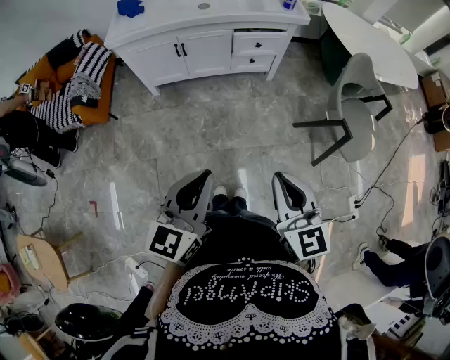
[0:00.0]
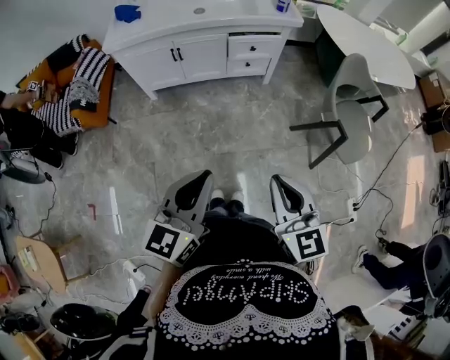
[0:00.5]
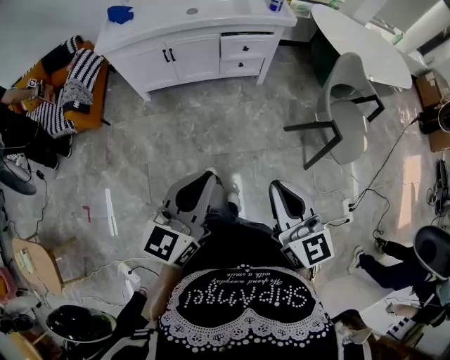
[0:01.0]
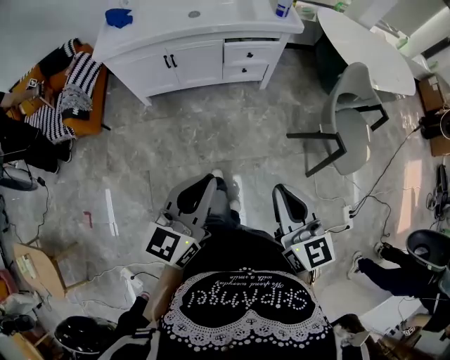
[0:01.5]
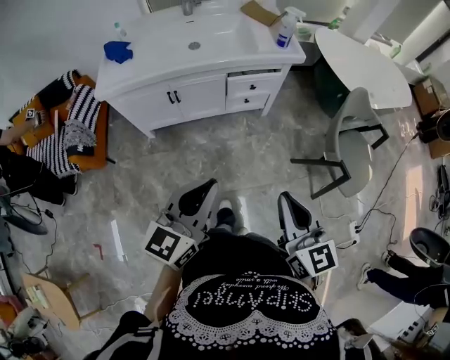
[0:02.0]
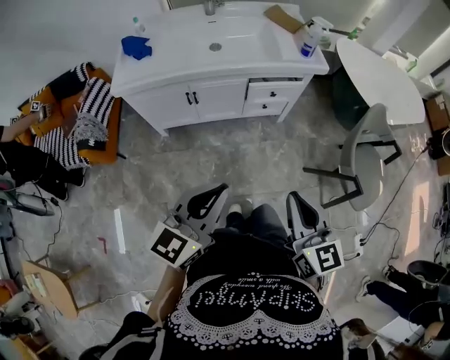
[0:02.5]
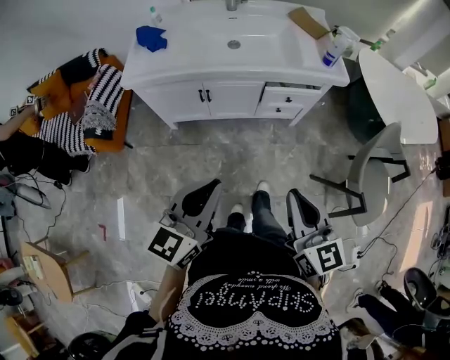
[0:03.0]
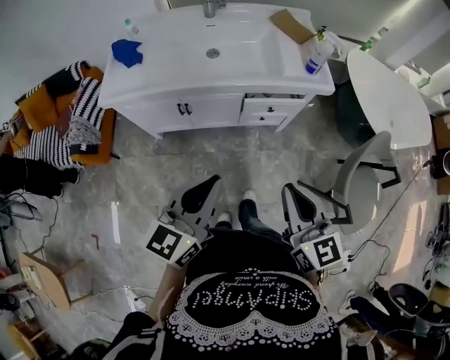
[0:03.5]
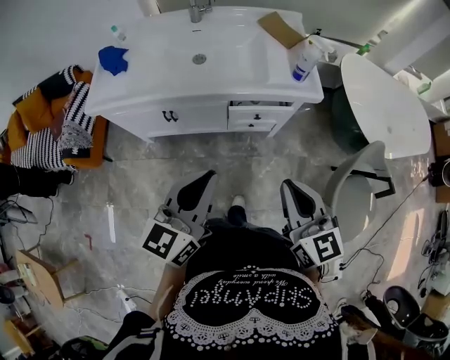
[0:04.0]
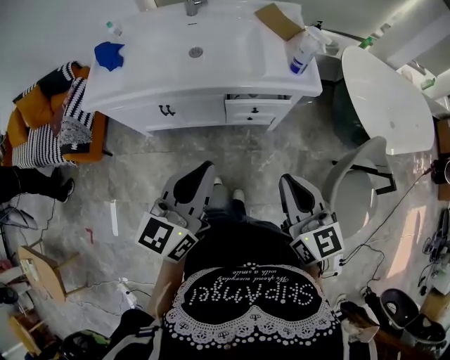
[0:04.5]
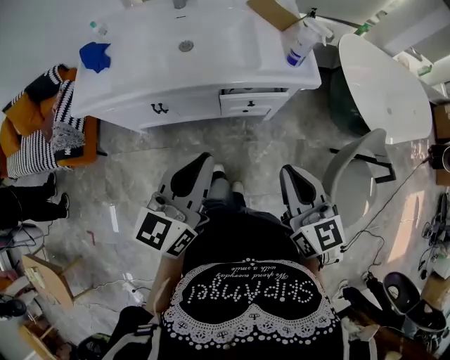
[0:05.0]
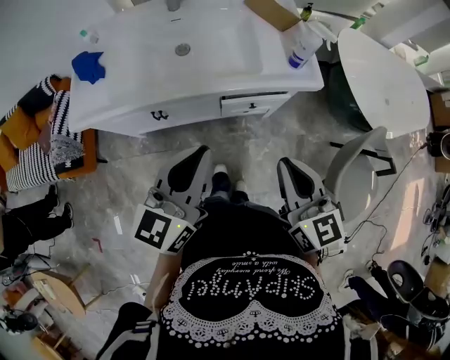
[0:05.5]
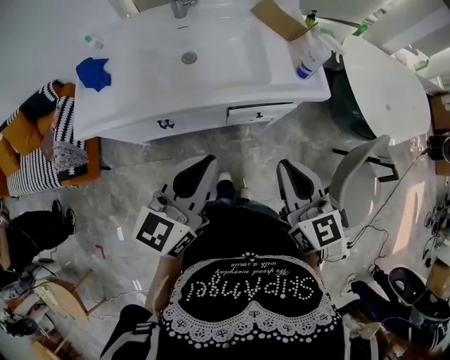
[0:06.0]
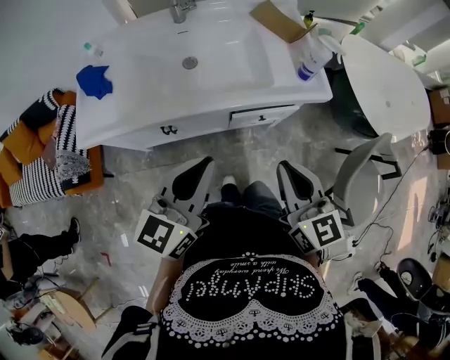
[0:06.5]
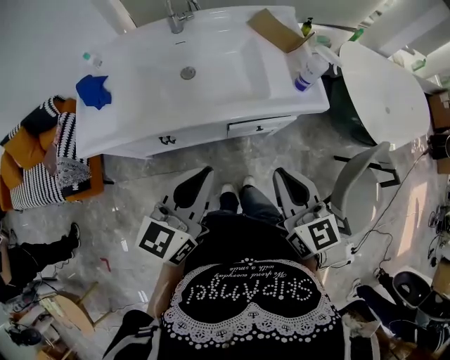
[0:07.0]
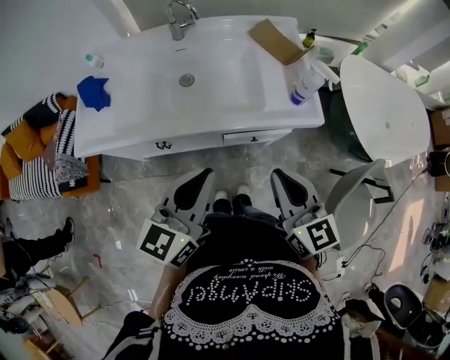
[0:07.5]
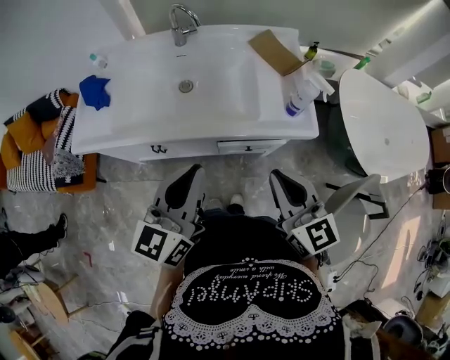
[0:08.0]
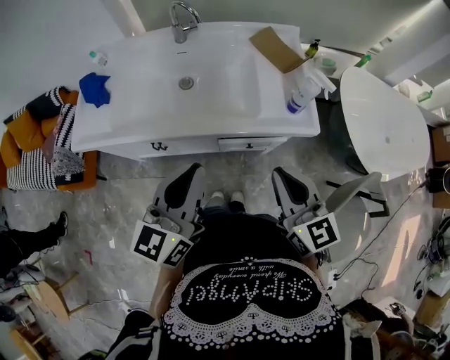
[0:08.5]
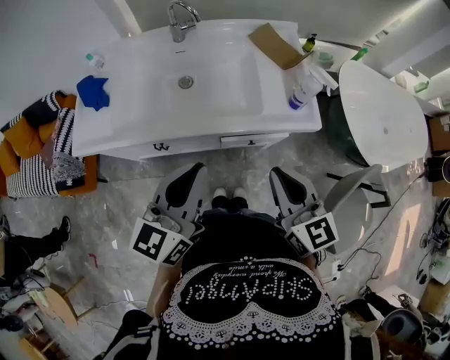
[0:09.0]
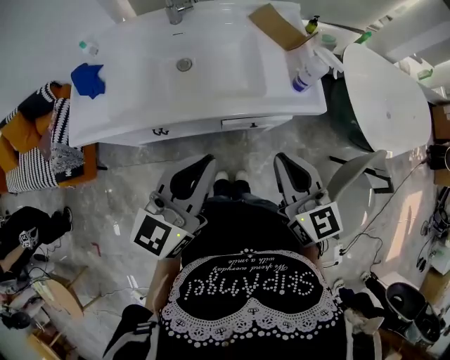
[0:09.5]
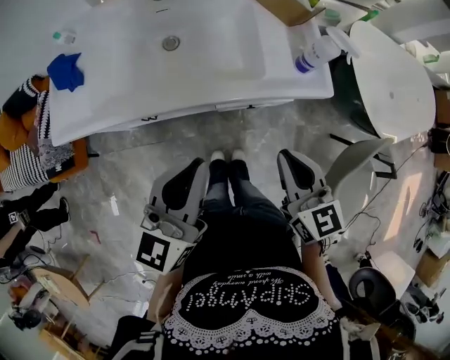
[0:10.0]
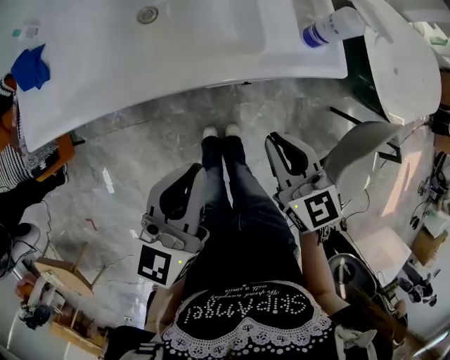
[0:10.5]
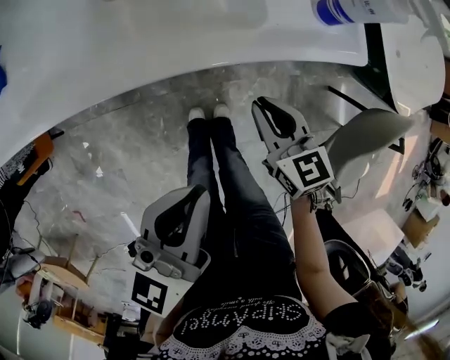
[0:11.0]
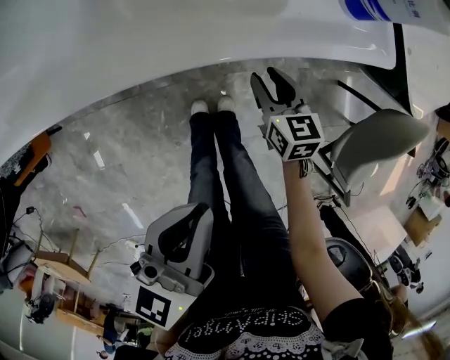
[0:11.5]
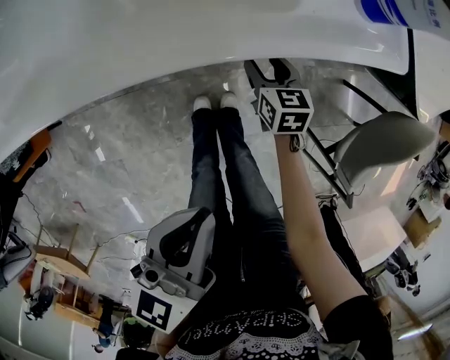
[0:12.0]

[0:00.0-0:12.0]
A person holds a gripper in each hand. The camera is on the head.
0:00.0 to 0:02.0: Both grippers travel together forward, about 15 cm.
0:02.0 to 0:04.0: The two grippers go approximately 25 cm forward.
0:04.0 to 0:06.0: The right gripper travels forward and to the left by some 10 cm. The left gripper heads forward, covering some 10 cm.
0:06.0 to 0:08.0: Both grippers travel together forward, some 5 cm.
0:08.0 to 0:10.0: The right gripper shifts approximately 5 cm downward.
0:10.0 to 0:12.0: The left gripper heads downward, covering roughly 20 cm, and turns by approximately 20 degrees; the right gripper heads downward, covering roughly 40 cm, changes its angle by some 30 degrees, and opens its fingers.

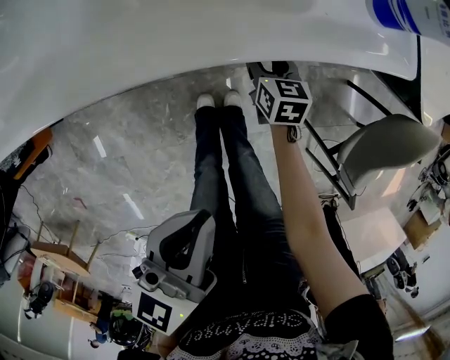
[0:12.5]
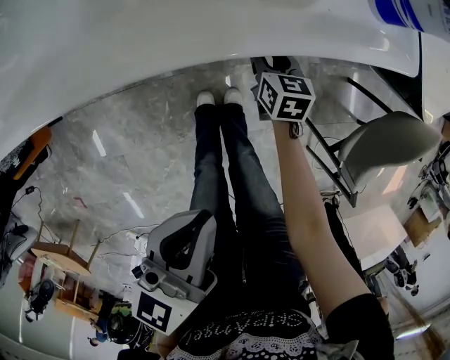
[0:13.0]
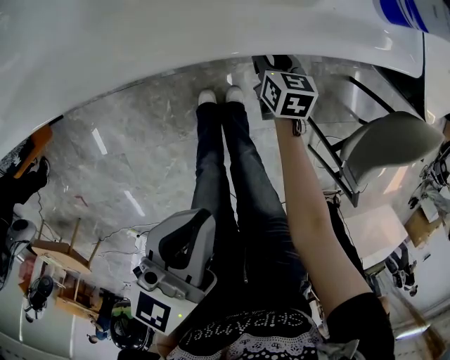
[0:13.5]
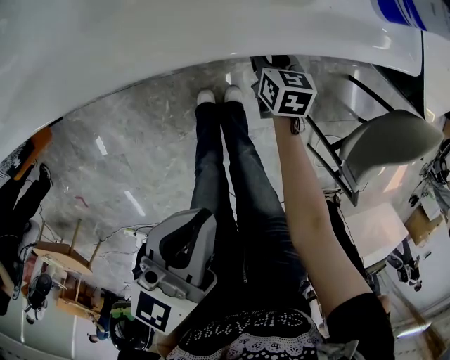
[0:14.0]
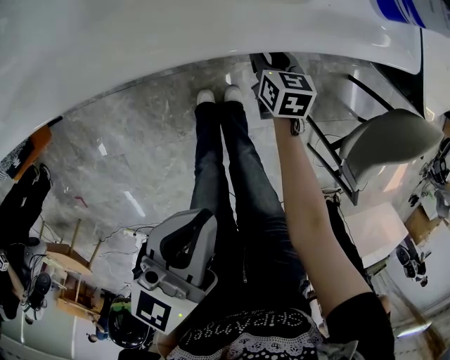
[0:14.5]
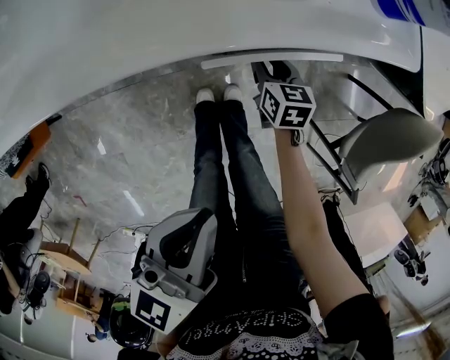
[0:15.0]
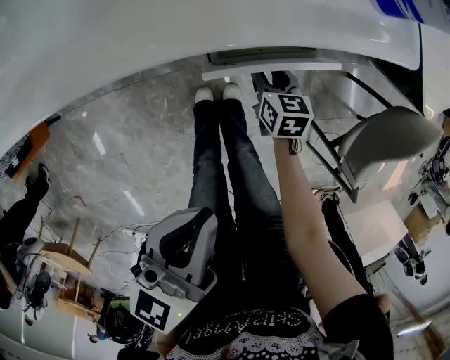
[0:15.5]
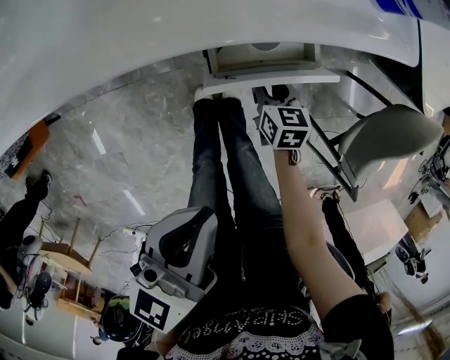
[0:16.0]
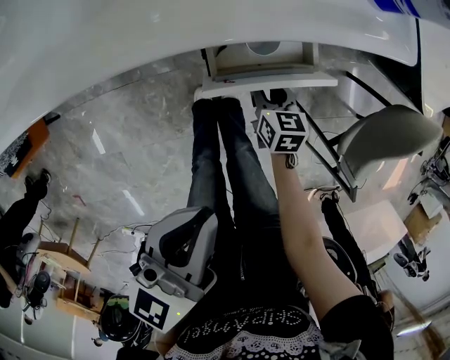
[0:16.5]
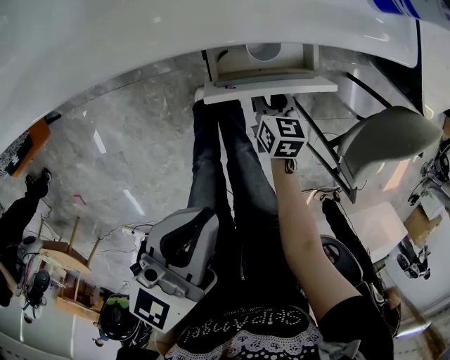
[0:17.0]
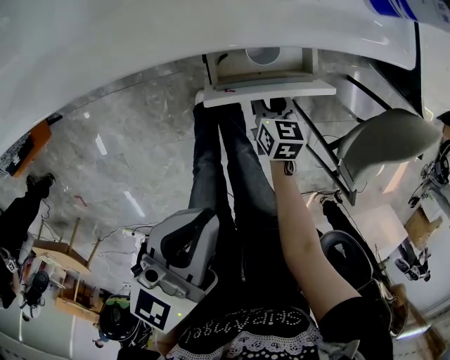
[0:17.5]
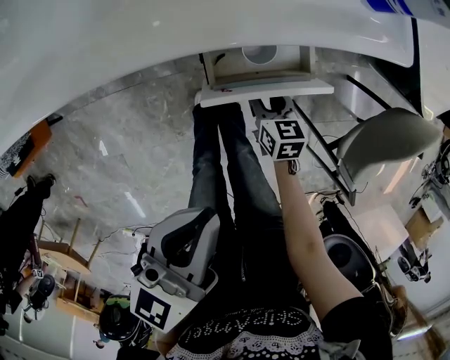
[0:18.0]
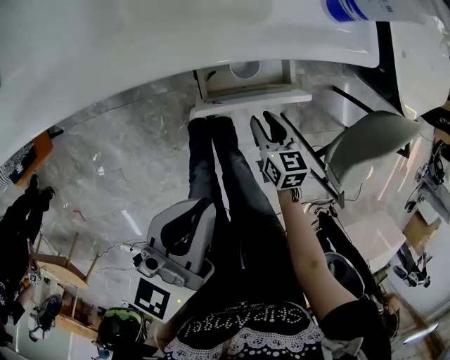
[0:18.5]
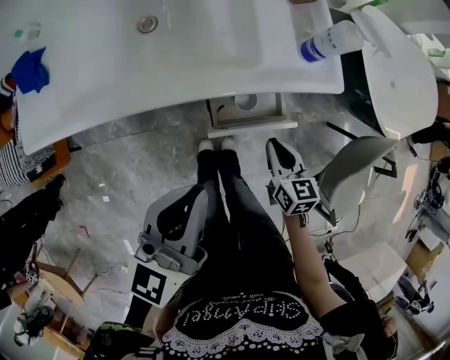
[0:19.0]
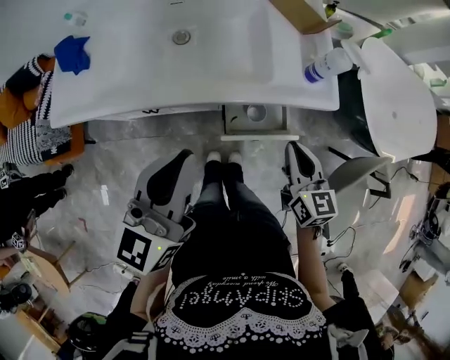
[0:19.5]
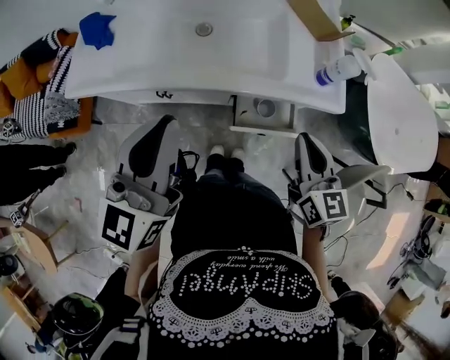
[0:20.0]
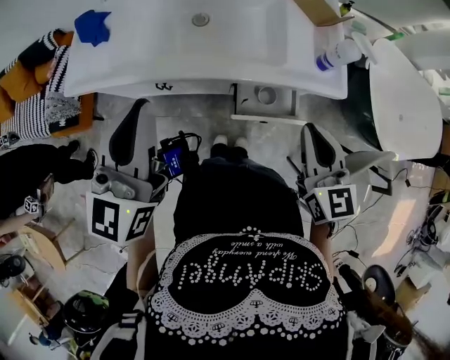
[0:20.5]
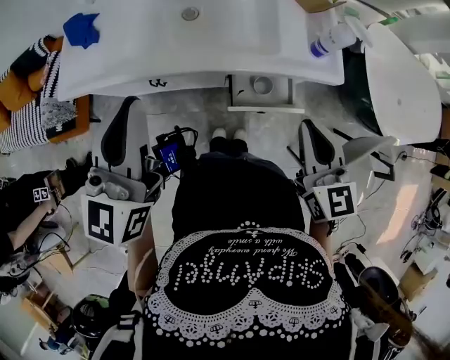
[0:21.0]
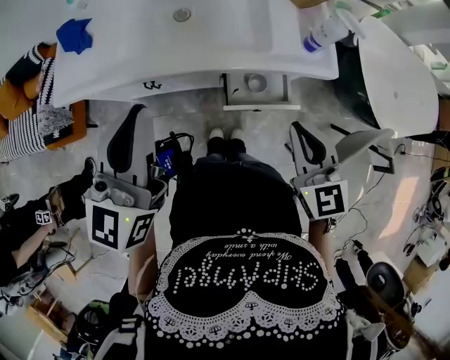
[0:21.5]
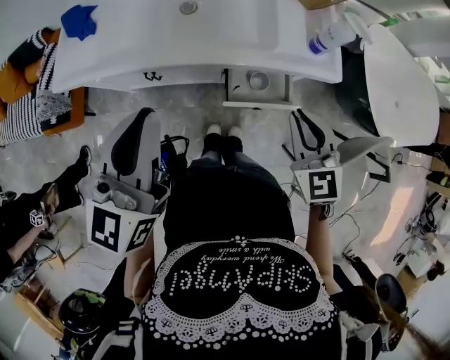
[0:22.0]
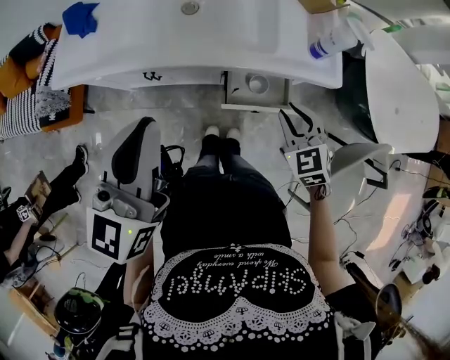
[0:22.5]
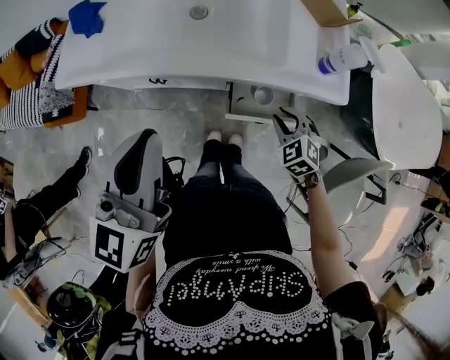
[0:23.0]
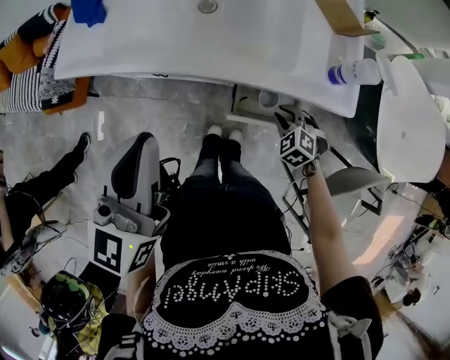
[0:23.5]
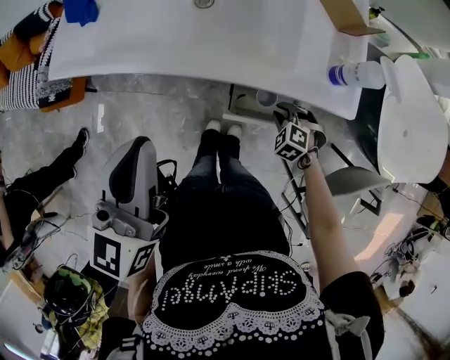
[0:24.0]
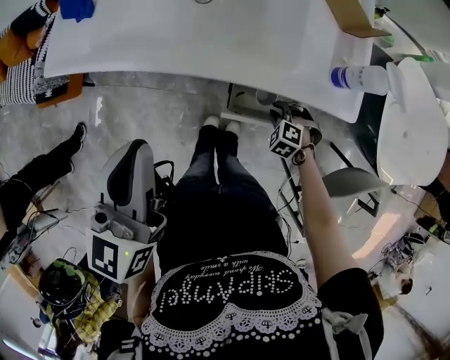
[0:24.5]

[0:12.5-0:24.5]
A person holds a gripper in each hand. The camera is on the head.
0:12.5 to 0:14.5: Neither gripper changes place.
0:14.5 to 0:16.5: The right gripper heads backward, covering some 10 cm.
0:16.5 to 0:18.5: The right gripper is displaced upward by about 5 cm.
0:18.5 to 0:20.5: The left gripper moves upward and to the left, roughly 25 cm, and turns by roughly 40 degrees. The right gripper moves upward, some 35 cm, rotates about 40 degrees, and closes.
0:20.5 to 0:22.5: The right gripper shifts some 15 cm downward, and changes its angle by about 40 degrees; the left gripper ends up some 5 cm from where it was.
0:22.5 to 0:24.5: The right gripper heads downward, covering approximately 25 cm, and tips its fingers downward by some 30 degrees, while the left gripper ends up some 5 cm from where it was.

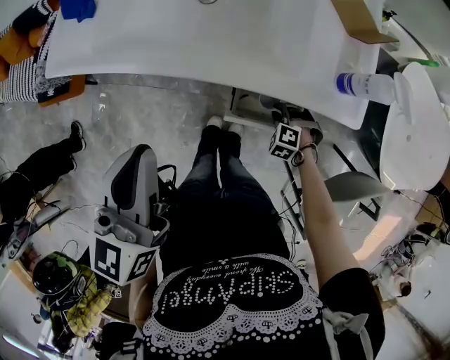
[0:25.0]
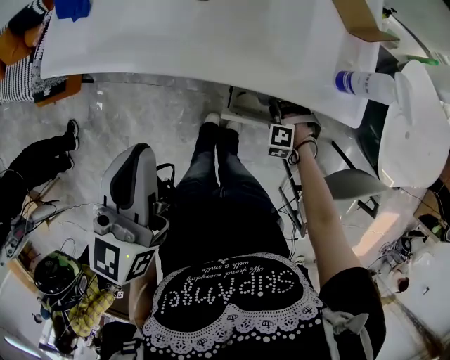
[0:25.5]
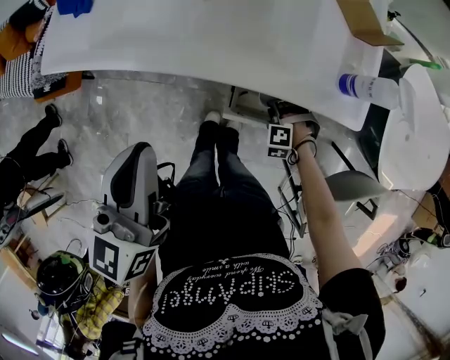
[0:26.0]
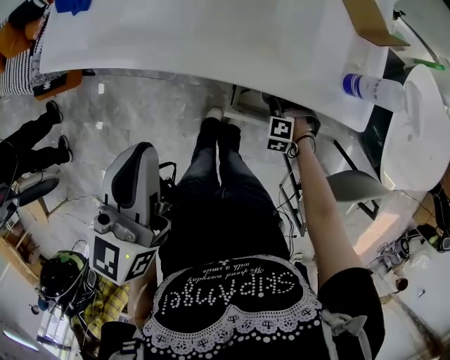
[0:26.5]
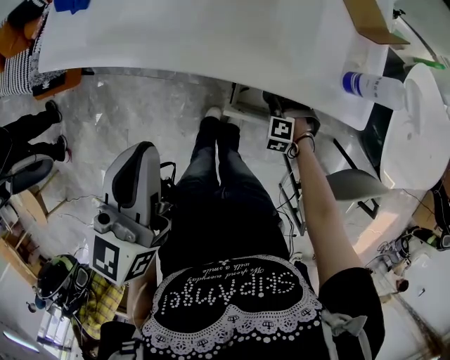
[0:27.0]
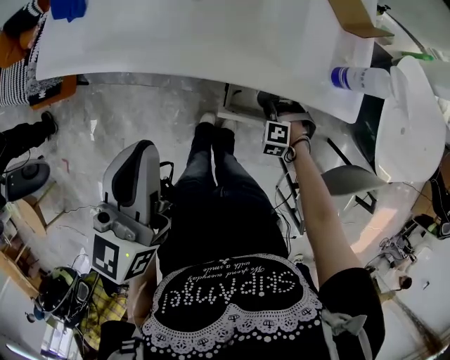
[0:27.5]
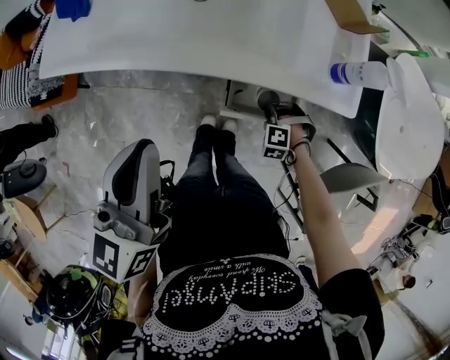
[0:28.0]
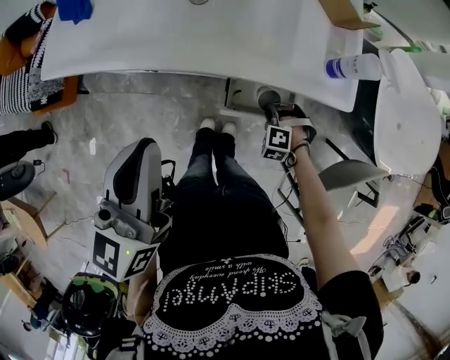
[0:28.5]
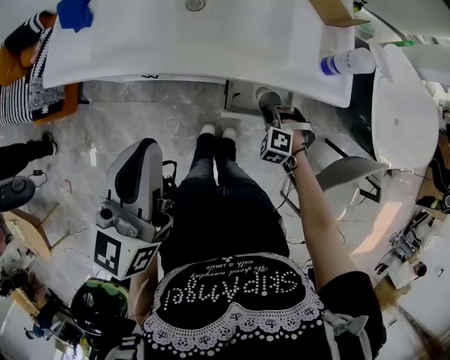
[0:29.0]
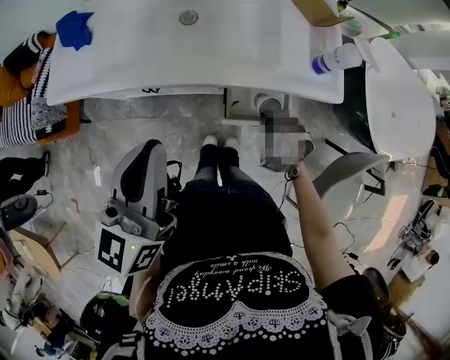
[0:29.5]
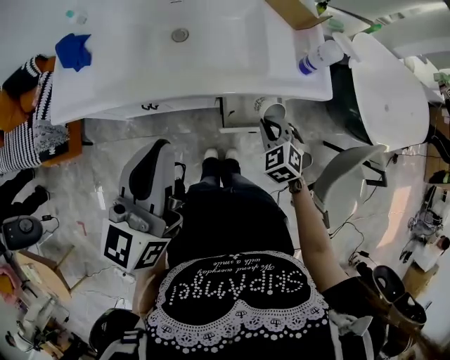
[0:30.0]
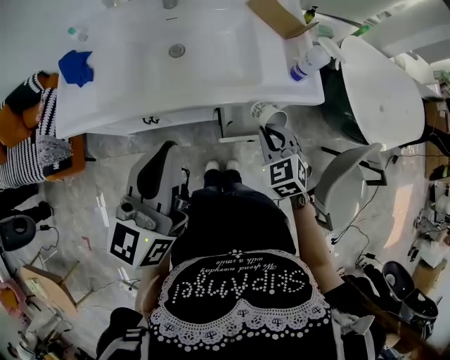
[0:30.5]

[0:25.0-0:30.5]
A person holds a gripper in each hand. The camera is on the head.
0:25.0 to 0:27.0: There are only small adjustments of the grippers.
0:27.0 to 0:28.5: The right gripper shifts by roughly 5 cm.
0:28.5 to 0:30.5: The right gripper moves upward, some 25 cm, and rotates around the line of its fingers by some 50 degrees, clockwise from behind.
